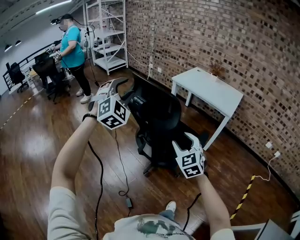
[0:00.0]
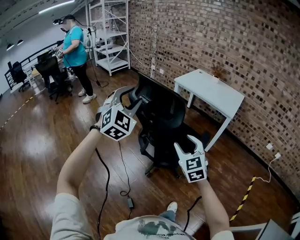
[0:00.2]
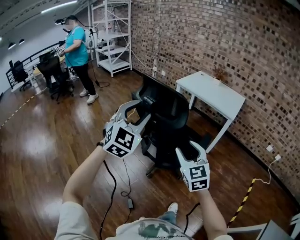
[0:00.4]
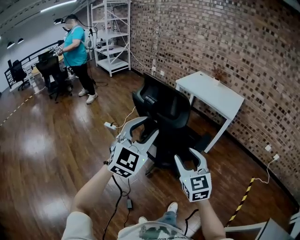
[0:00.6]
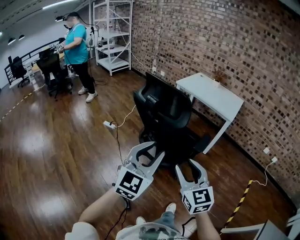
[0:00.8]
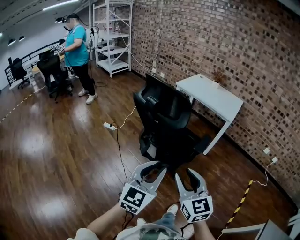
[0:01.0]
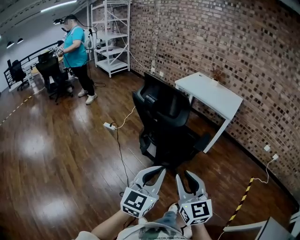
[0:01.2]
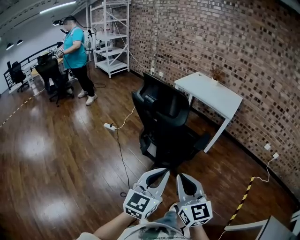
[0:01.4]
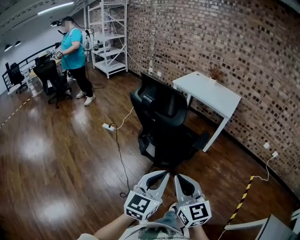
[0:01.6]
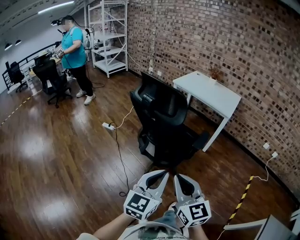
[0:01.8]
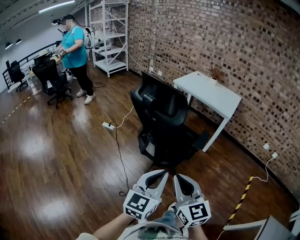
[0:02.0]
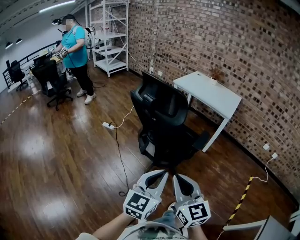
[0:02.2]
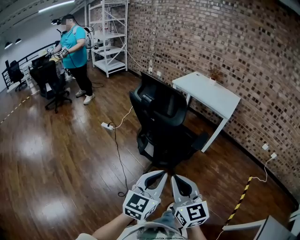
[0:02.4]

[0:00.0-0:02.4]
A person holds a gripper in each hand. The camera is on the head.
0:00.0 to 0:01.2: The left gripper is displaced backward, to the right and downward by roughly 35 cm, rolls counterclockwise, seen from behind, by about 60 degrees, and closes its fingers. Meanwhile the right gripper shifts roughly 20 cm backward, turns by approximately 30 degrees, and closes up.
0:01.2 to 0:02.4: The right gripper closes its fingers.

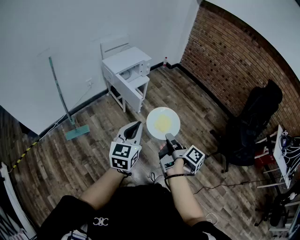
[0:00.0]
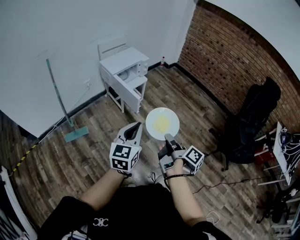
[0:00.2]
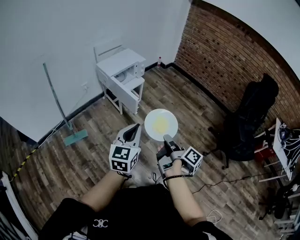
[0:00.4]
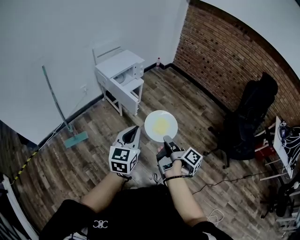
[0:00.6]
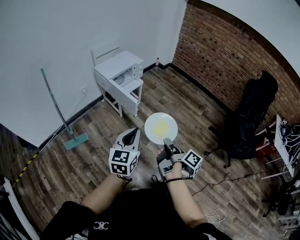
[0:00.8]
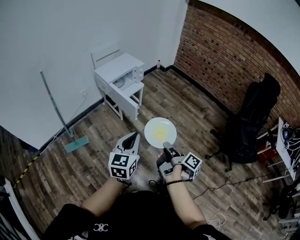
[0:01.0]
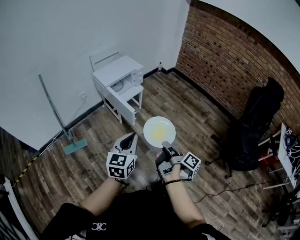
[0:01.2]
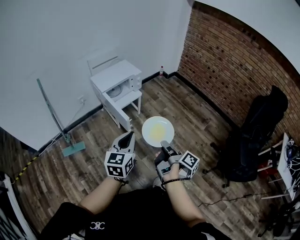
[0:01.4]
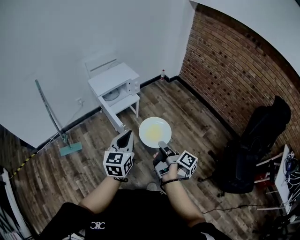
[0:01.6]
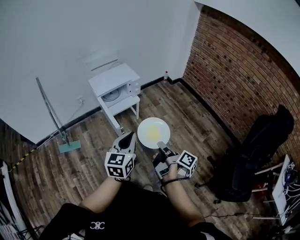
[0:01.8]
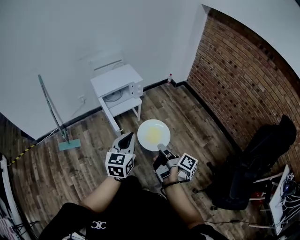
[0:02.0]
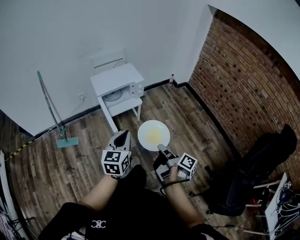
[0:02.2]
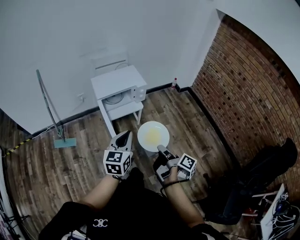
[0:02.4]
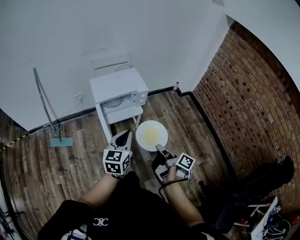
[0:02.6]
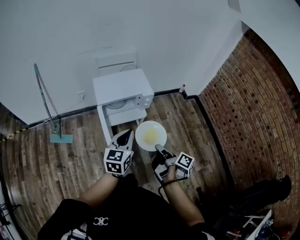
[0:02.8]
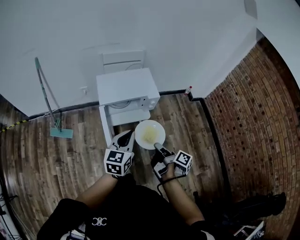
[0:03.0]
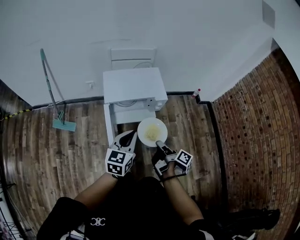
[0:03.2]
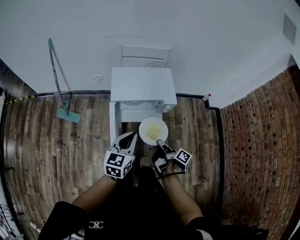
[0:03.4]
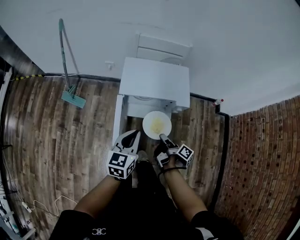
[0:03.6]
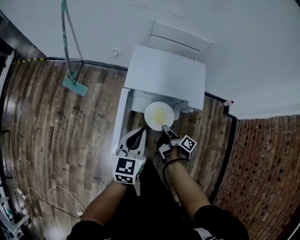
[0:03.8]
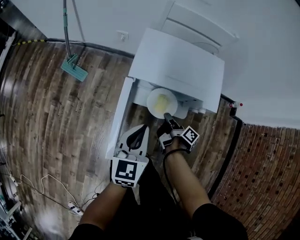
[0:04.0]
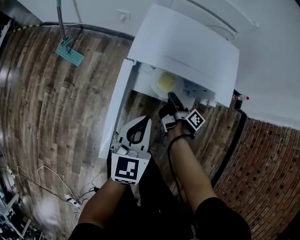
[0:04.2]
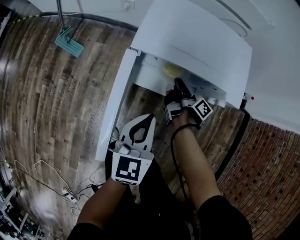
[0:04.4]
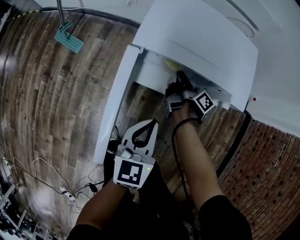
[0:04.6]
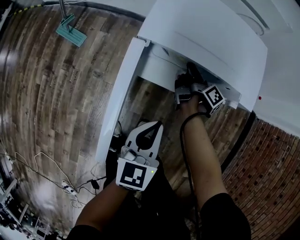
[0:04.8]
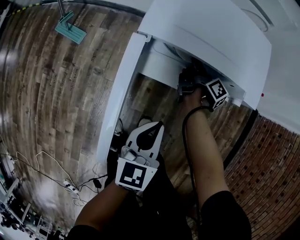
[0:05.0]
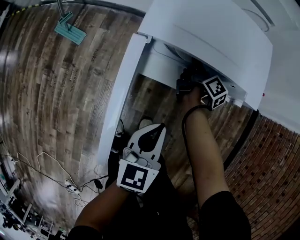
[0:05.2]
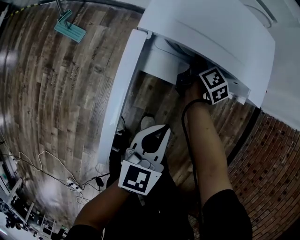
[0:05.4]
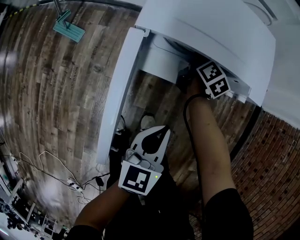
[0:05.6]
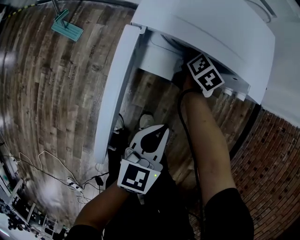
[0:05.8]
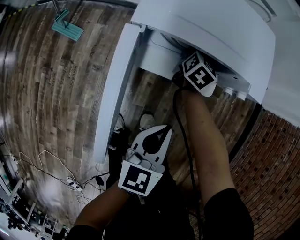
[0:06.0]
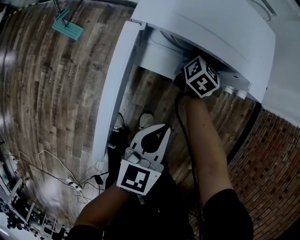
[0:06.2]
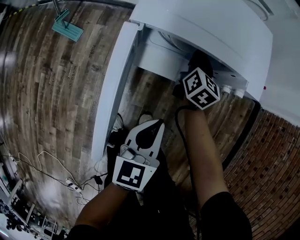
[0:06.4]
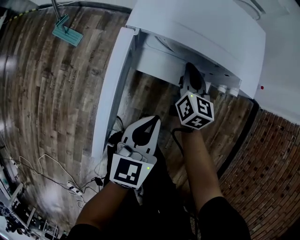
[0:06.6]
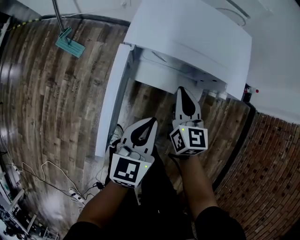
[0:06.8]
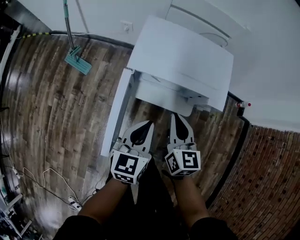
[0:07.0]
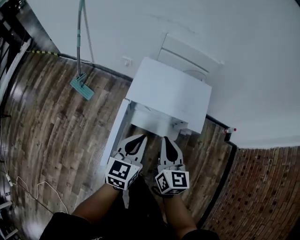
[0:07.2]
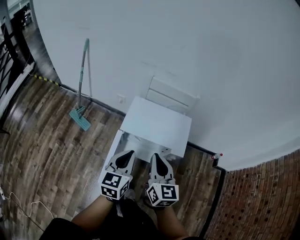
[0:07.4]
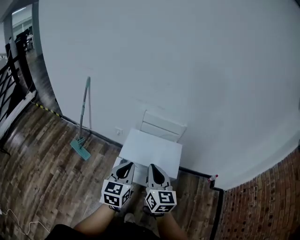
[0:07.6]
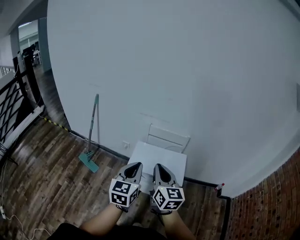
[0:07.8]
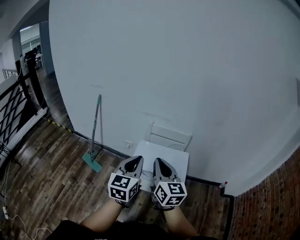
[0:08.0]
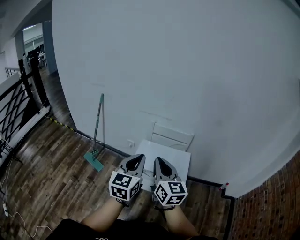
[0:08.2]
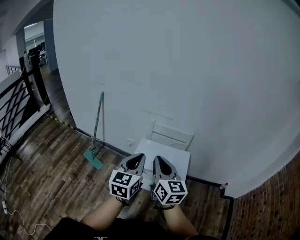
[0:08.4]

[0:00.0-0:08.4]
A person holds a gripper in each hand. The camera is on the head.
0:00.0 to 0:01.4: Both grippers travel together forward and to the right, approximately 15 cm.
0:01.4 to 0:02.8: The two grippers go some 35 cm forward. The right gripper rotates about 30 degrees.
0:02.8 to 0:04.2: The left gripper shifts some 25 cm downward, and changes its angle by some 30 degrees; the right gripper ends up about 50 cm from where it was, and swivels some 20 degrees.
0:04.2 to 0:05.6: The right gripper travels forward by roughly 15 cm, and rolls counterclockwise, seen from behind, by about 40 degrees. Meanwhile the left gripper is displaced downward by some 10 cm.
0:05.6 to 0:07.0: The right gripper is displaced upward and backward by approximately 30 cm, turns by about 40 degrees, and opens, then closes again; the left gripper travels upward by approximately 10 cm.
0:07.0 to 0:08.4: Both grippers move upward, roughly 40 cm. The right gripper changes its angle by about 20 degrees. The left gripper swivels about 20 degrees.

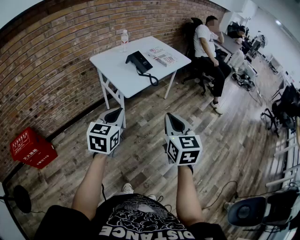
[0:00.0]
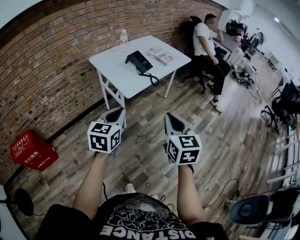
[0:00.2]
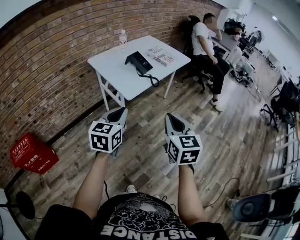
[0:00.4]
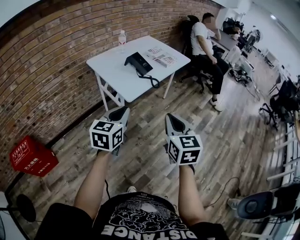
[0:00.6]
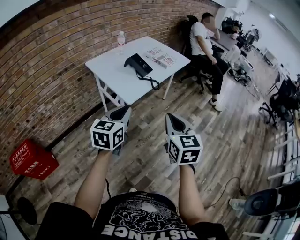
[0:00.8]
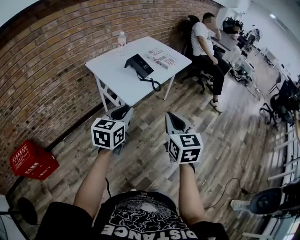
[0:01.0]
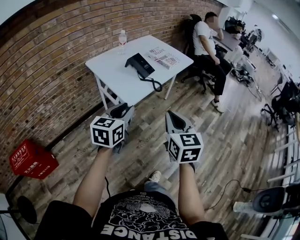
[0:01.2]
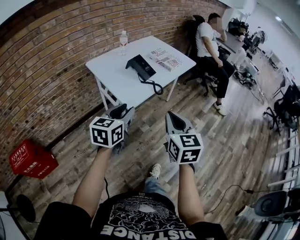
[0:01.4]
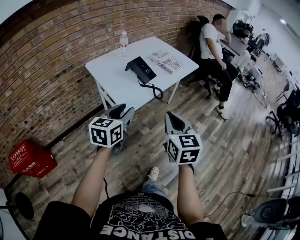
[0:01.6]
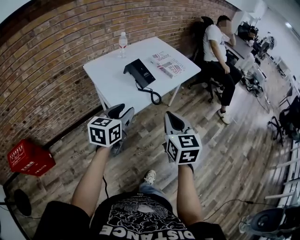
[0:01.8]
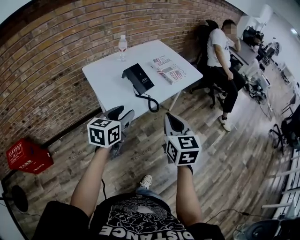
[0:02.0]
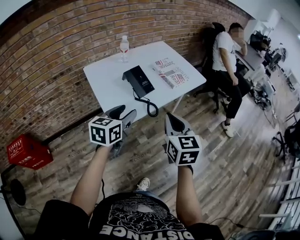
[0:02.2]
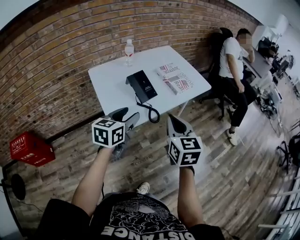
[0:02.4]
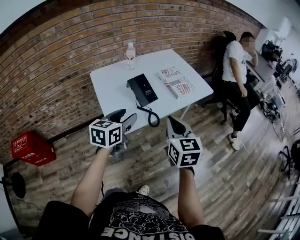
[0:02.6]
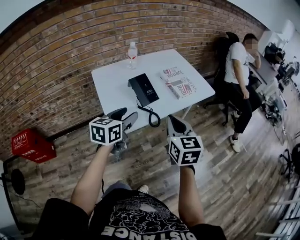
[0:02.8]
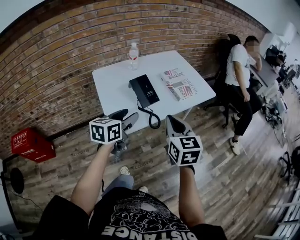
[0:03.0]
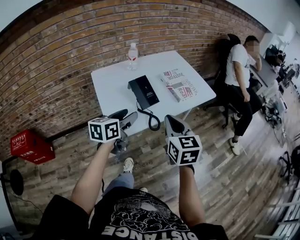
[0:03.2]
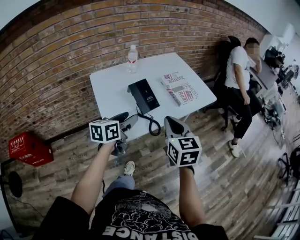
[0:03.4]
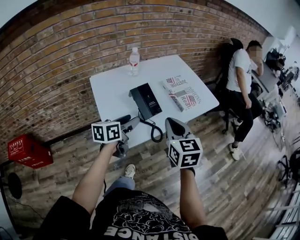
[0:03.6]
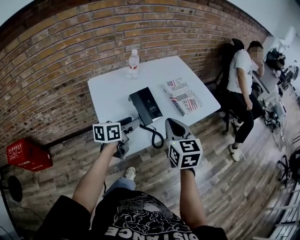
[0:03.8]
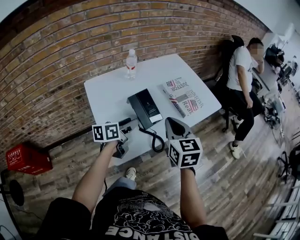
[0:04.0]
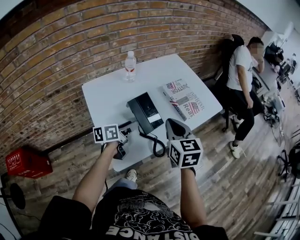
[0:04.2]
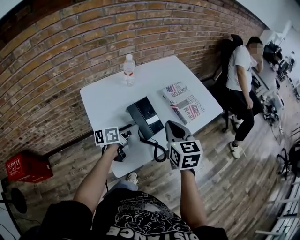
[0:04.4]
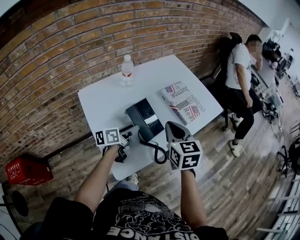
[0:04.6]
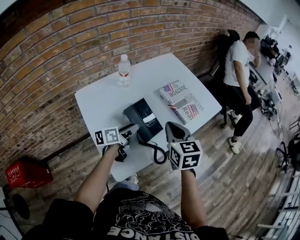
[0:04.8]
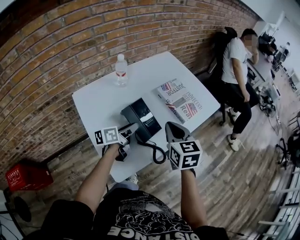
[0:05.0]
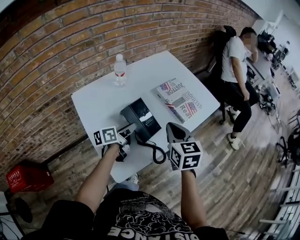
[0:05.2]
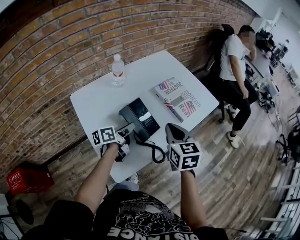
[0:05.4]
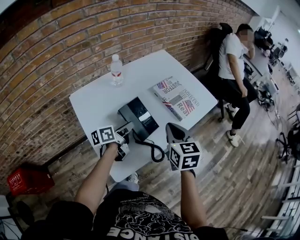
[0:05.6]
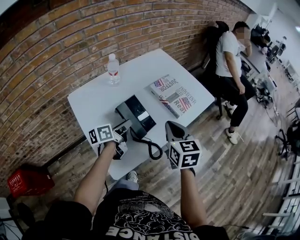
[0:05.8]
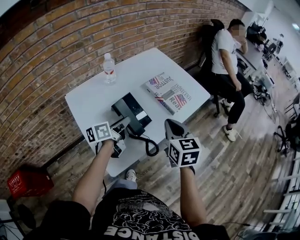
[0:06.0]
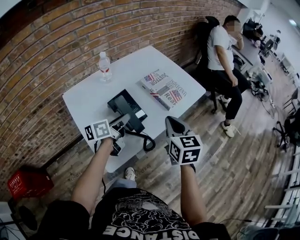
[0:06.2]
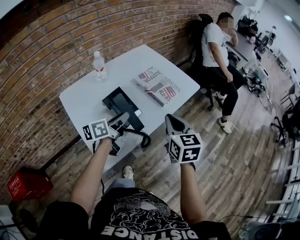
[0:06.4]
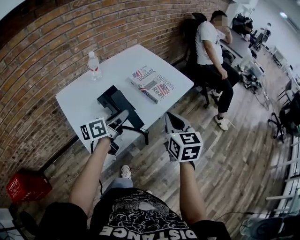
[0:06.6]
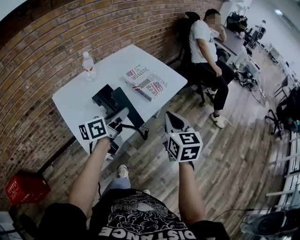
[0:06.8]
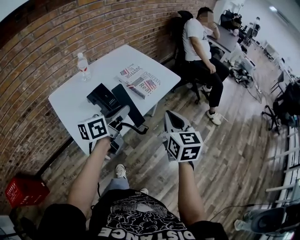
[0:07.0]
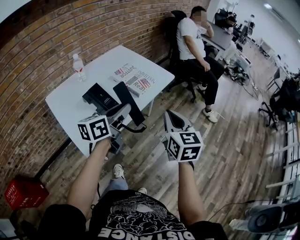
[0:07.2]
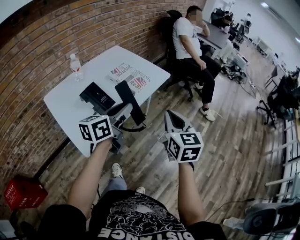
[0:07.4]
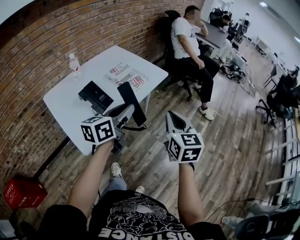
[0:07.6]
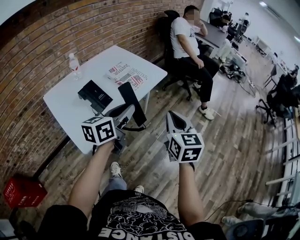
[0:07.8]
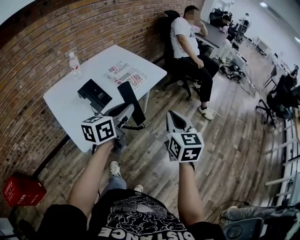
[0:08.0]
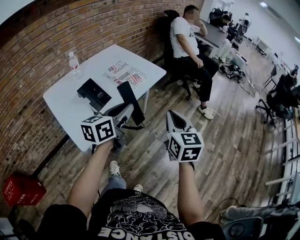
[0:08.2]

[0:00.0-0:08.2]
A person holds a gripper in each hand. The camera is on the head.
0:00.0 to 0:01.6: The two grippers go about 15 cm forward. The left gripper opens up.
0:01.6 to 0:03.2: Both grippers move forward, some 20 cm.
0:03.2 to 0:05.0: The left gripper is displaced forward and downward by some 25 cm, and changes its angle by some 30 degrees. The right gripper is displaced forward by roughly 20 cm.
0:05.0 to 0:06.6: The left gripper goes about 15 cm upward, to the right and backward, while the right gripper shifts roughly 15 cm to the right and backward.
0:06.6 to 0:08.2: The left gripper shifts about 20 cm to the right, upward and backward, and turns by some 20 degrees. The right gripper moves to the right and backward, some 20 cm.

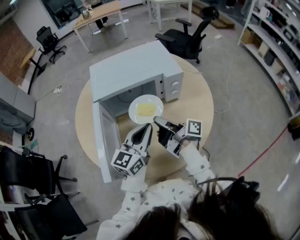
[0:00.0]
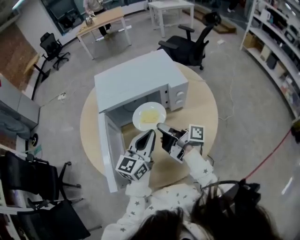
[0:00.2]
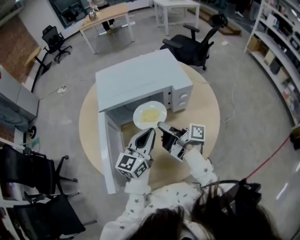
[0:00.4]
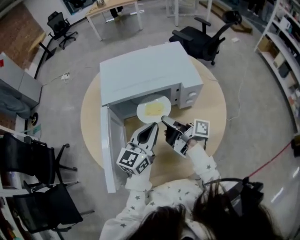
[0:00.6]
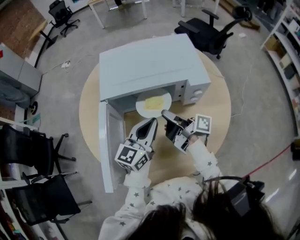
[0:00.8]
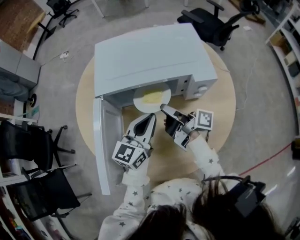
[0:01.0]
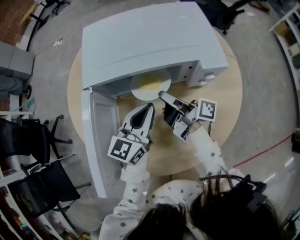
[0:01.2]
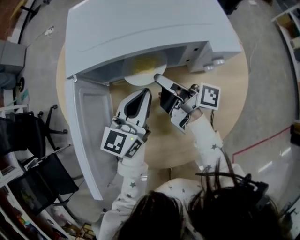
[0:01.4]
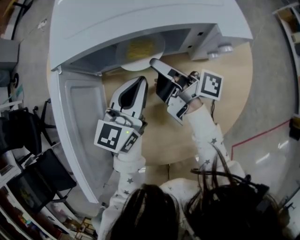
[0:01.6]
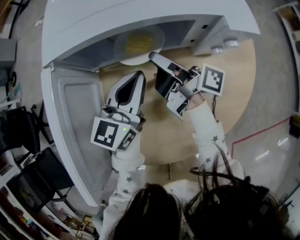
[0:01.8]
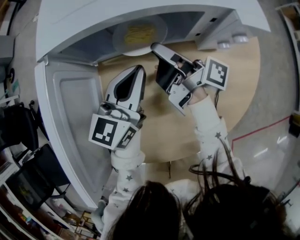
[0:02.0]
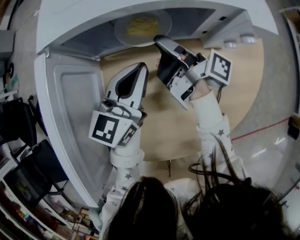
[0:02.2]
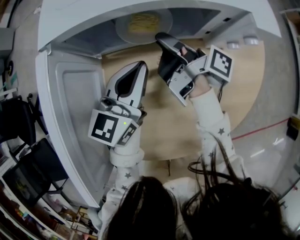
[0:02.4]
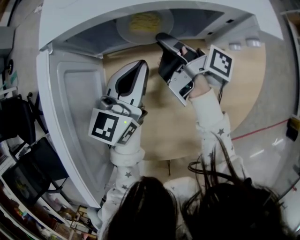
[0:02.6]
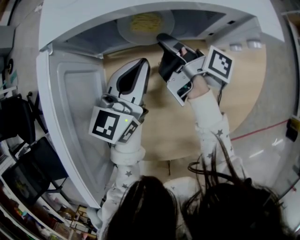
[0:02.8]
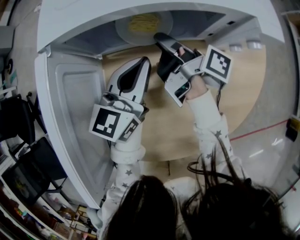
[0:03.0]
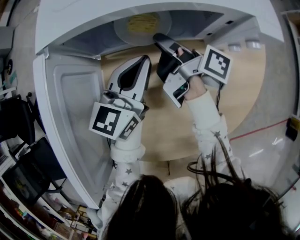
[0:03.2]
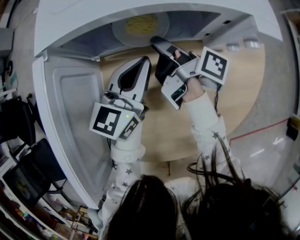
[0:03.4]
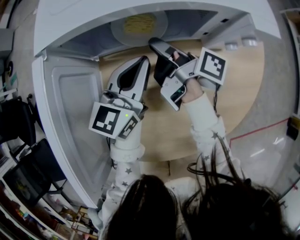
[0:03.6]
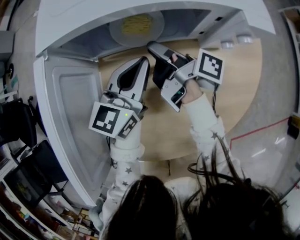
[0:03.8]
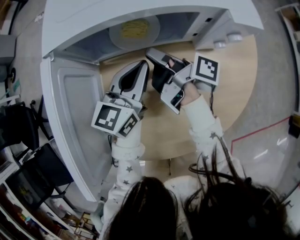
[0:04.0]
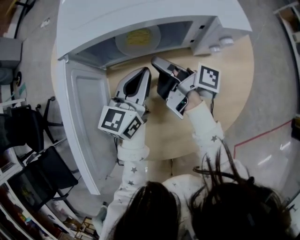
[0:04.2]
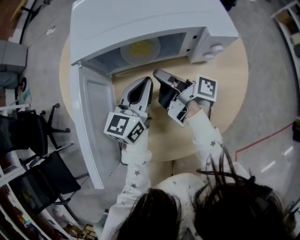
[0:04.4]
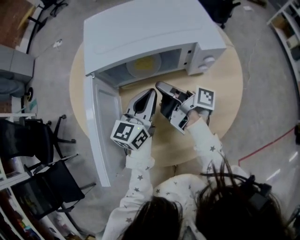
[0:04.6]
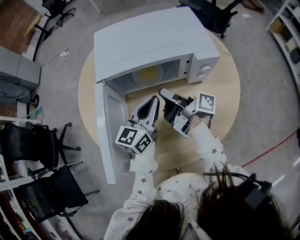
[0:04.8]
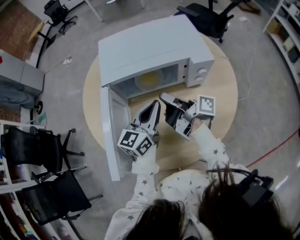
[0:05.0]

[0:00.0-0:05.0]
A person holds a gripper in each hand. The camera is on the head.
0:03.4 to 0:05.0: The left gripper shifts approximately 15 cm downward.
